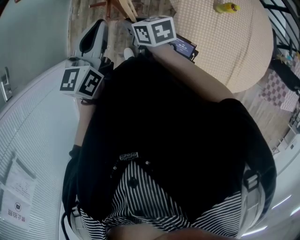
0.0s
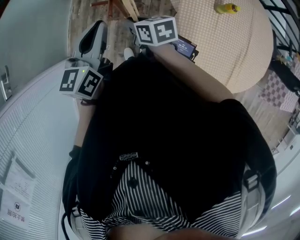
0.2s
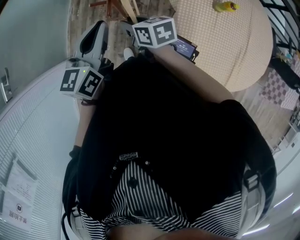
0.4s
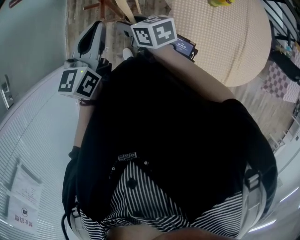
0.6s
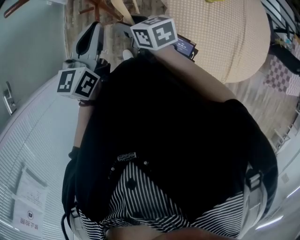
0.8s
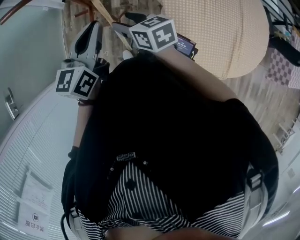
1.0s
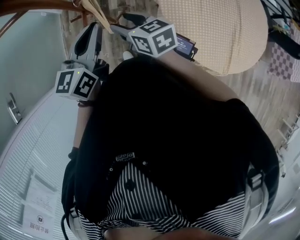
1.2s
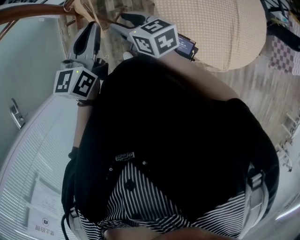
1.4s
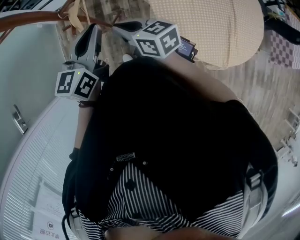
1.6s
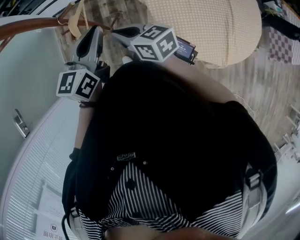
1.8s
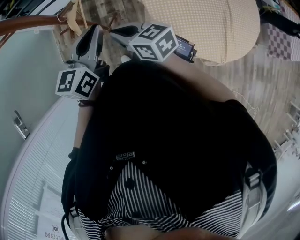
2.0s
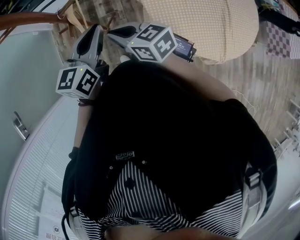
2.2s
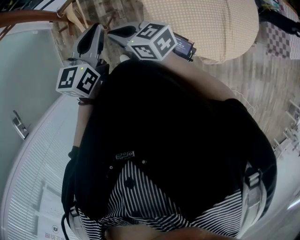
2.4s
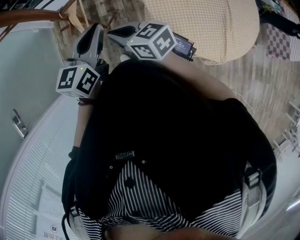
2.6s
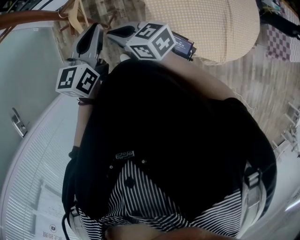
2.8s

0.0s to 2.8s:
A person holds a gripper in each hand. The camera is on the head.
0.0s to 1.4s: The right gripper travels upward and to the right by approximately 10 cm, and opens. Meanwhile the left gripper is displaced to the right by some 5 cm.
1.4s to 2.8s: The right gripper moves some 5 cm, and closes up.

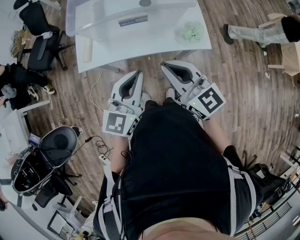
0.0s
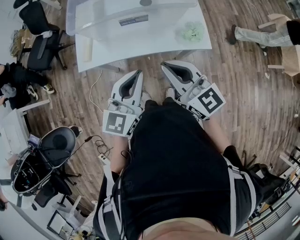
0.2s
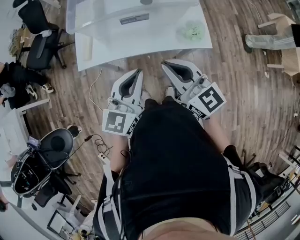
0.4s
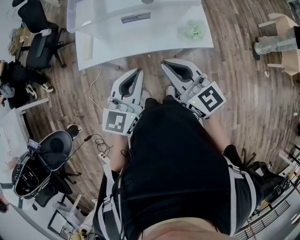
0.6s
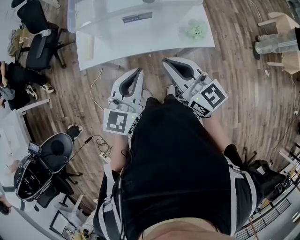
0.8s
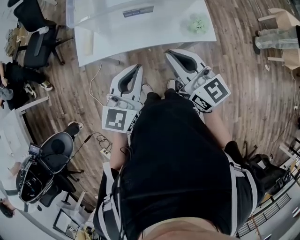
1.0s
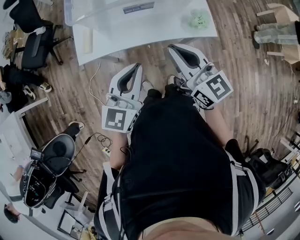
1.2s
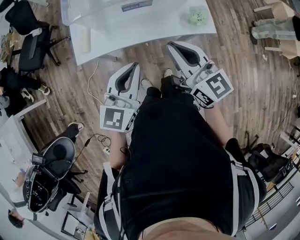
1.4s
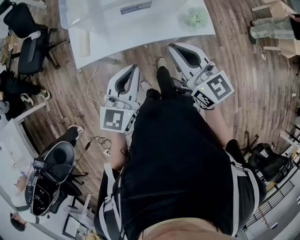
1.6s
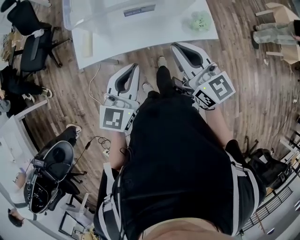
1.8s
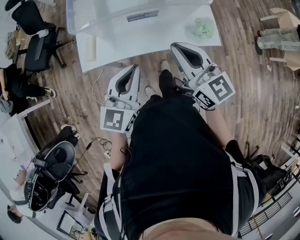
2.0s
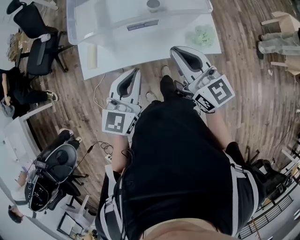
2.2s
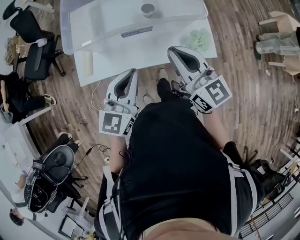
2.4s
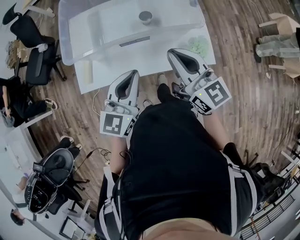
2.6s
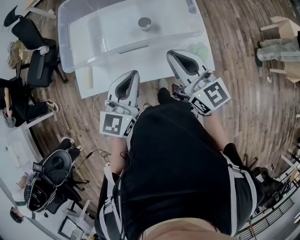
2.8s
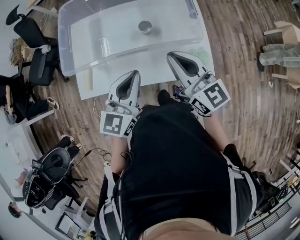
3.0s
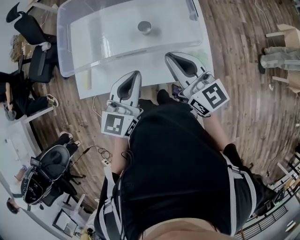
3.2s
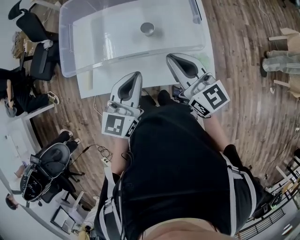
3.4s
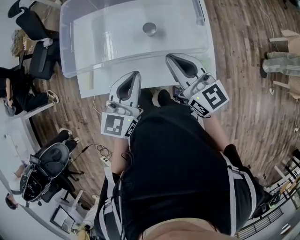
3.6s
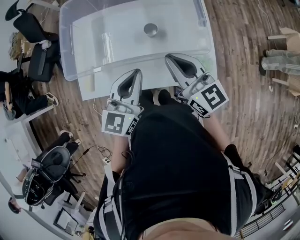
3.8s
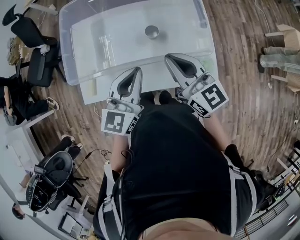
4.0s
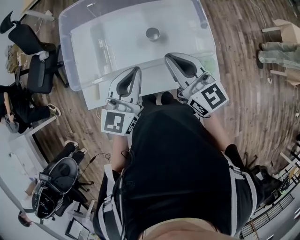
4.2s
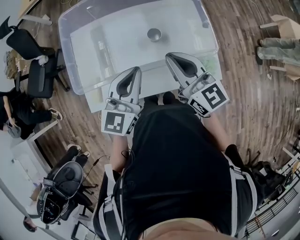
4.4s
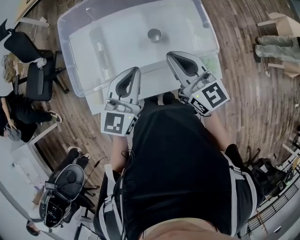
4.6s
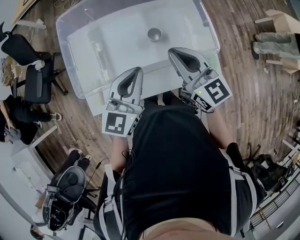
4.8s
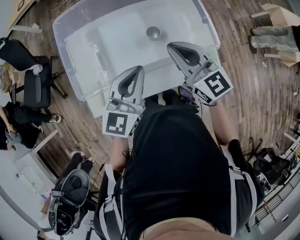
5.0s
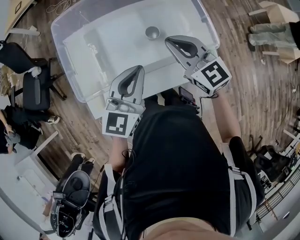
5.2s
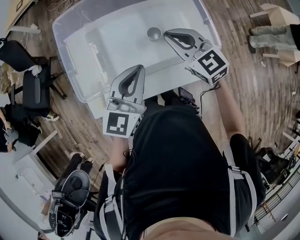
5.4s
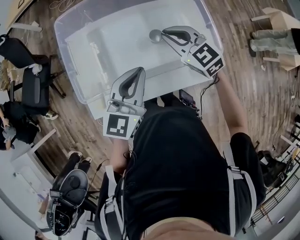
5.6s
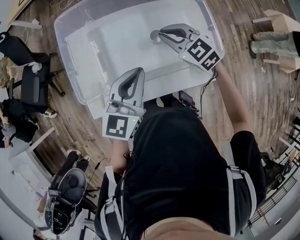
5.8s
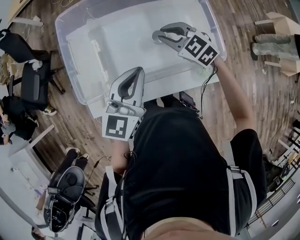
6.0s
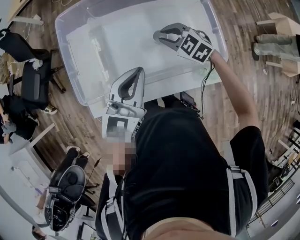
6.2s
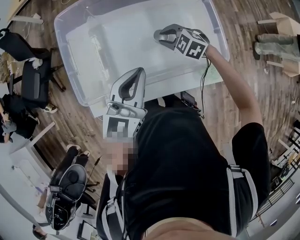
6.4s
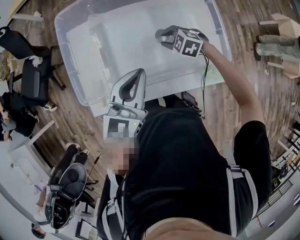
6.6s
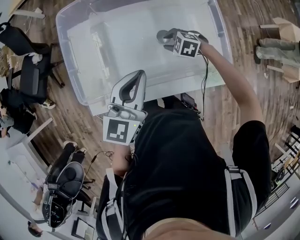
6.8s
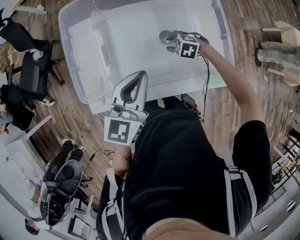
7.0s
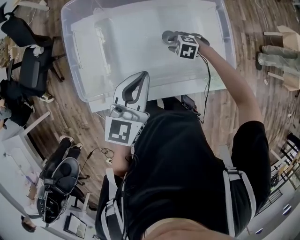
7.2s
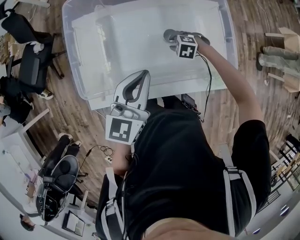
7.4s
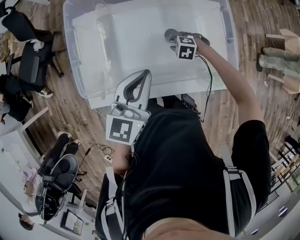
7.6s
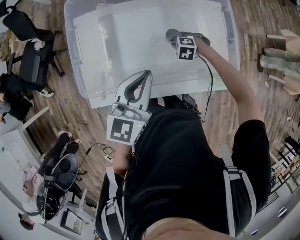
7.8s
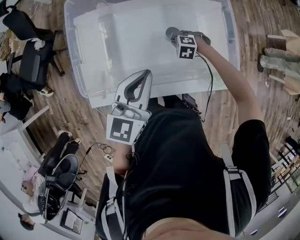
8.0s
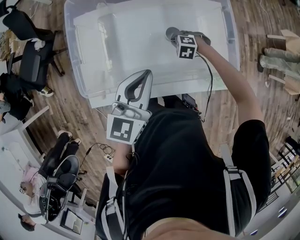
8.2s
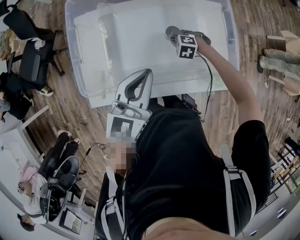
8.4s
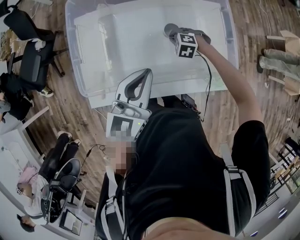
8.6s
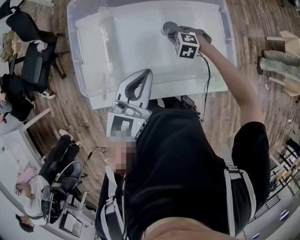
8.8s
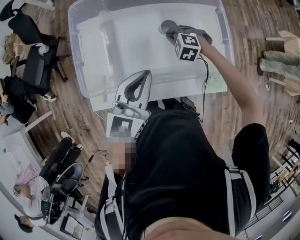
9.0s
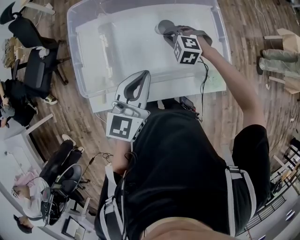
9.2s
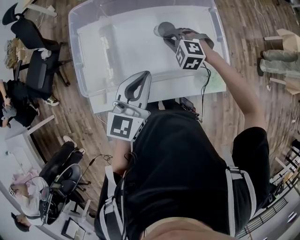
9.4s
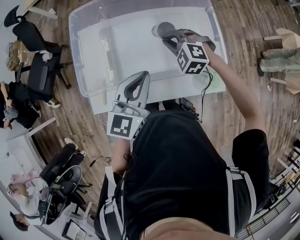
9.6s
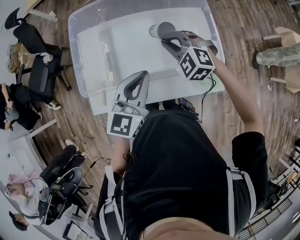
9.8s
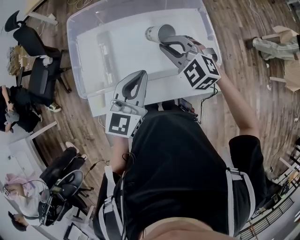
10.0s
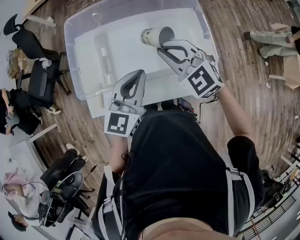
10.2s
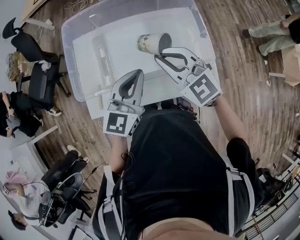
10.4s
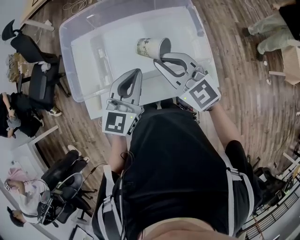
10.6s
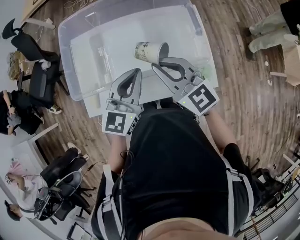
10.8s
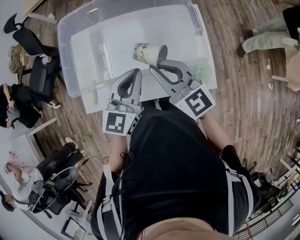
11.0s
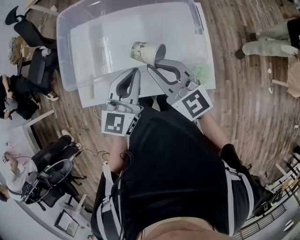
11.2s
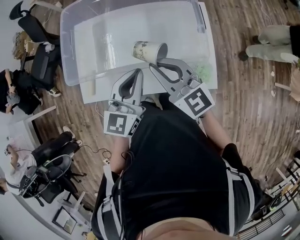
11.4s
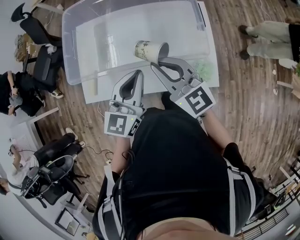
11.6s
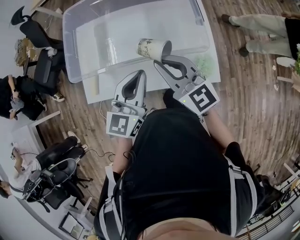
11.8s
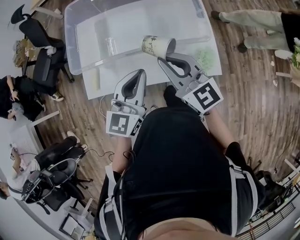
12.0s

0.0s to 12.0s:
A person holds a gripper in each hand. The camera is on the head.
0.0s to 1.6s: The left gripper moves to the left, roughly 10 cm; the right gripper changes place by roughly 5 cm.
1.6s to 3.0s: The grippers both shift forward and to the right by some 25 cm.
3.0s to 4.4s: The grippers both shift forward and to the left by some 10 cm.
4.4s to 6.0s: The right gripper shifts about 20 cm forward and downward, and angles its fingers downward, by approximately 30 degrees, while the left gripper ends up some 5 cm from where it was.
6.0s to 7.6s: The right gripper heads downward, covering some 20 cm, and tilts its fingers some 40 degrees downward.
7.6s to 9.0s: The right gripper is displaced upward by some 10 cm, and closes.
9.0s to 10.4s: The right gripper heads upward and backward, covering some 30 cm, and points its fingers roughly 40 degrees further upward, while the left gripper goes about 5 cm to the right.
10.4s to 12.0s: Both grippers move backward, roughly 15 cm. The right gripper swivels some 20 degrees.

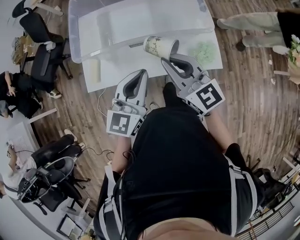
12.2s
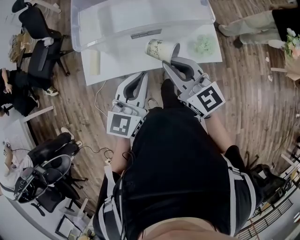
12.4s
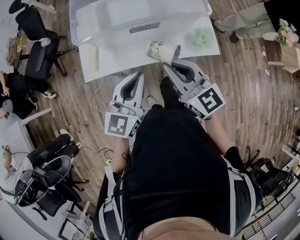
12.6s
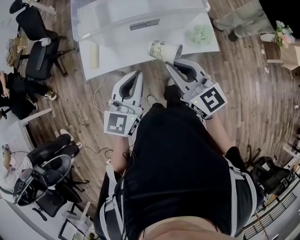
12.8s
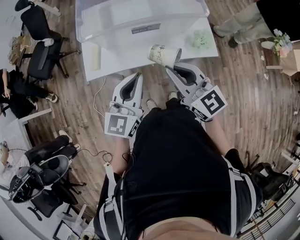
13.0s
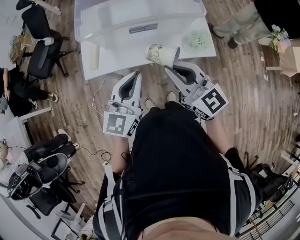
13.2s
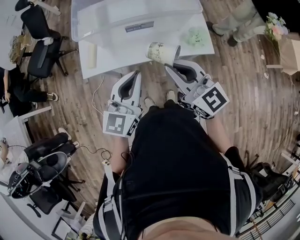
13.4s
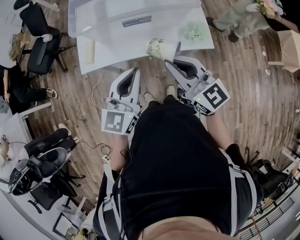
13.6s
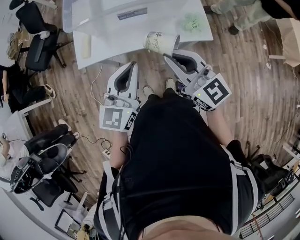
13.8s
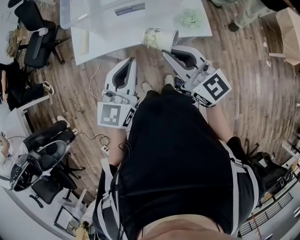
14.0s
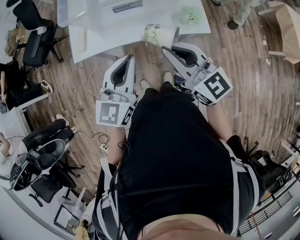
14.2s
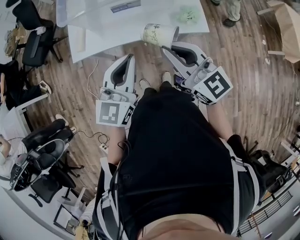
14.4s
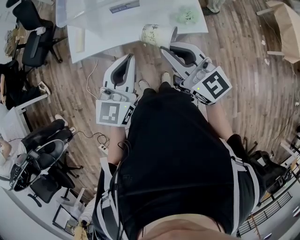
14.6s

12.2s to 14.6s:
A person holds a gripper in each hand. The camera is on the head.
12.2s to 13.4s: Both grippers move backward, roughly 15 cm.
13.4s to 14.6s: The left gripper ends up some 5 cm from where it was. The right gripper changes place by about 5 cm.

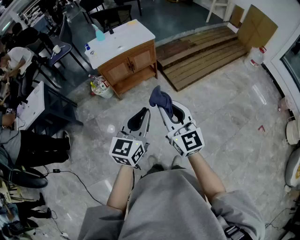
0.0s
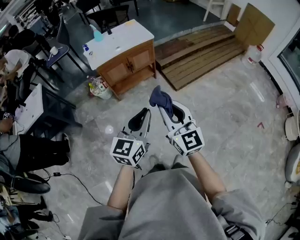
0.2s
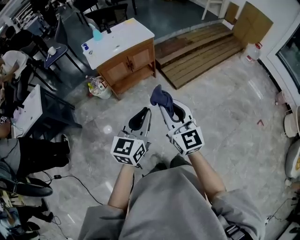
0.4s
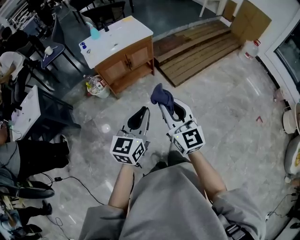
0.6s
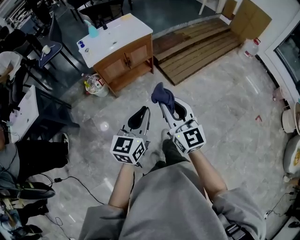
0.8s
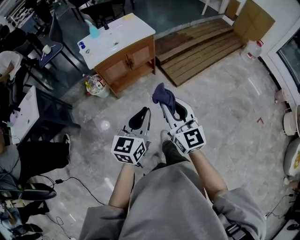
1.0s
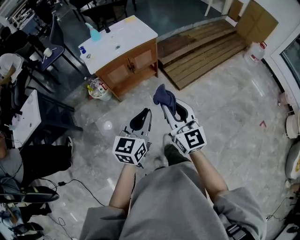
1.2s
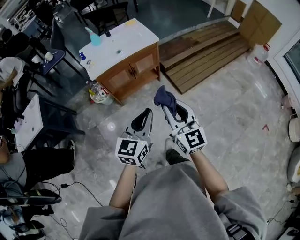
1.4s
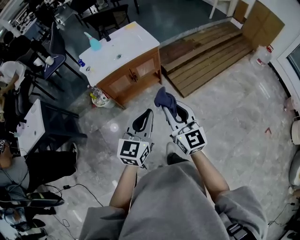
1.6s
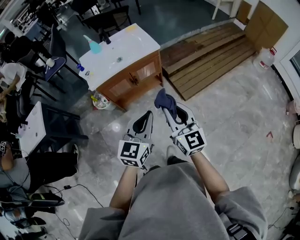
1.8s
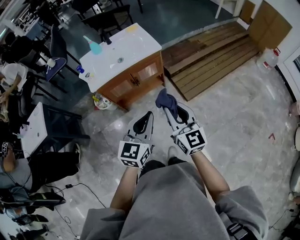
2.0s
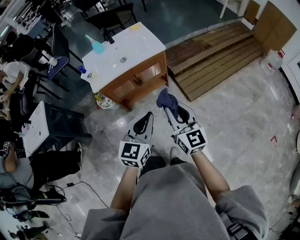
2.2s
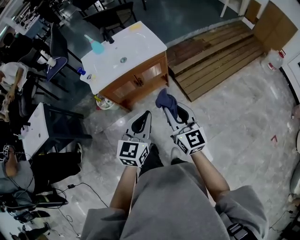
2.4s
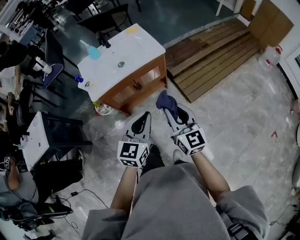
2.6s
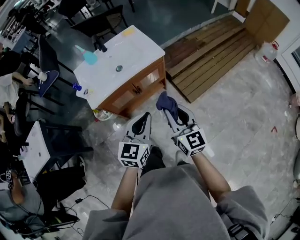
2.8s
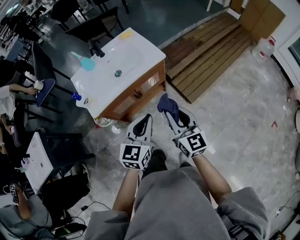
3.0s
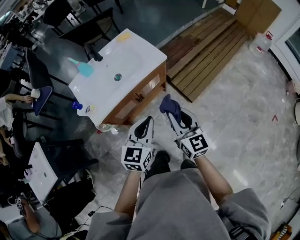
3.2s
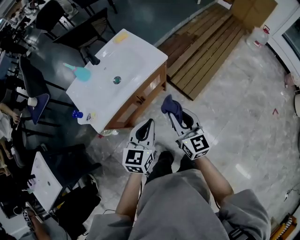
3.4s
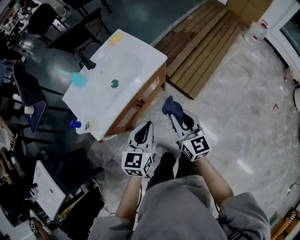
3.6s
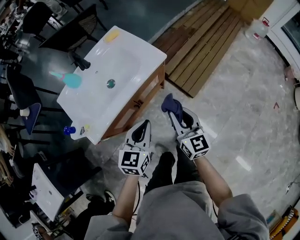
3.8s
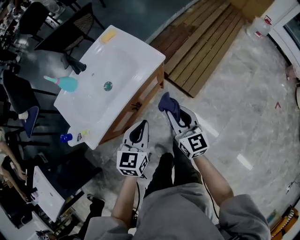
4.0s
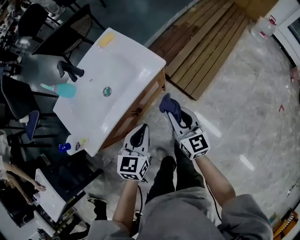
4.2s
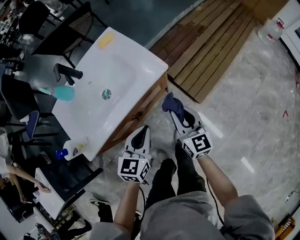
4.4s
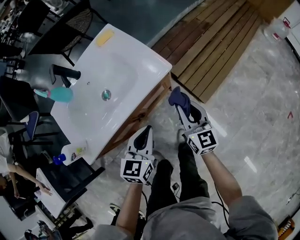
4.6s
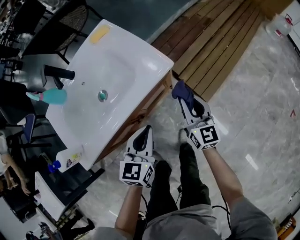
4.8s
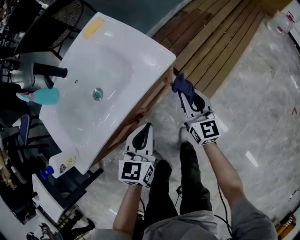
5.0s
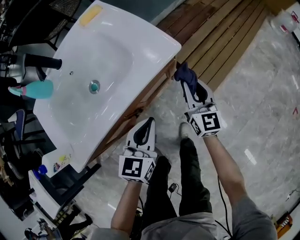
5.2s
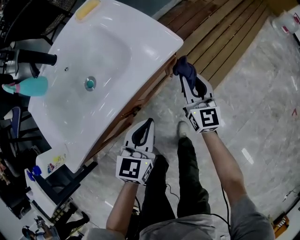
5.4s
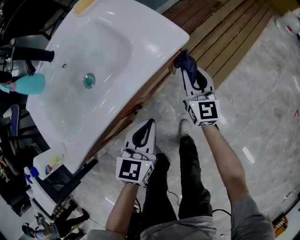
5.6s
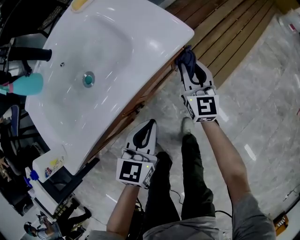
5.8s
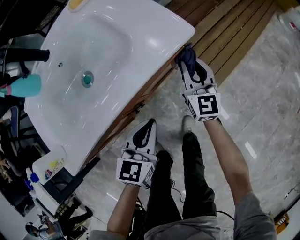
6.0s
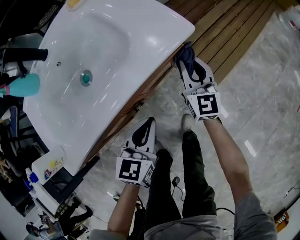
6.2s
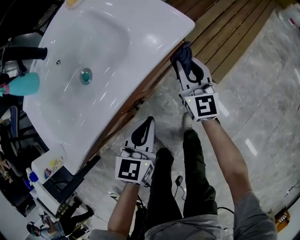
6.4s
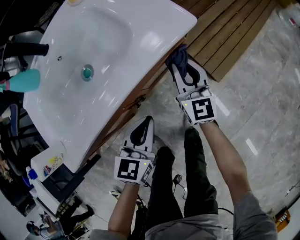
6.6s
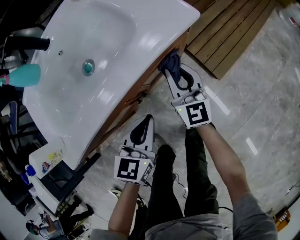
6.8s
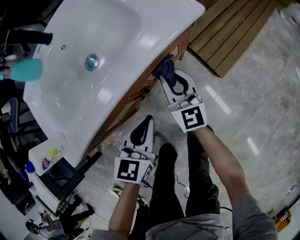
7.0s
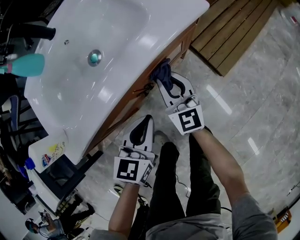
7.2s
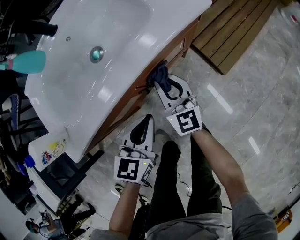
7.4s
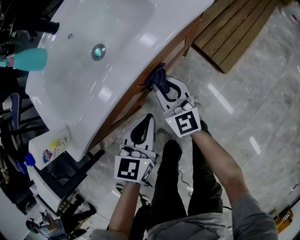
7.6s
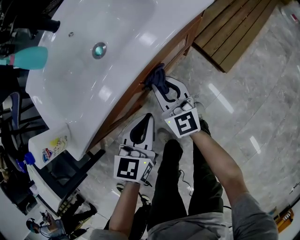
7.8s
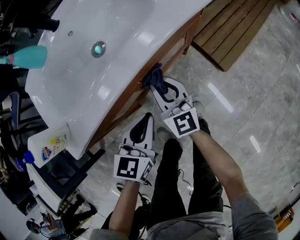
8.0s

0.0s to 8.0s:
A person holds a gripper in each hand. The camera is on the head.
0.0s to 1.6s: Both grippers travel together forward, approximately 20 cm.
1.6s to 3.2s: The right gripper goes some 25 cm forward, while the left gripper shifts some 25 cm forward and to the left.
3.2s to 4.8s: The left gripper is displaced downward and forward by about 25 cm; the right gripper travels forward and downward by approximately 35 cm.
4.8s to 6.4s: The right gripper travels downward, forward and to the left by approximately 15 cm. The left gripper travels downward by some 10 cm.
6.4s to 8.0s: The right gripper is displaced to the left and backward by some 20 cm. The left gripper is displaced to the left and backward by roughly 10 cm.
